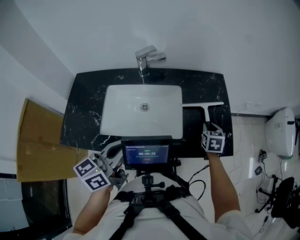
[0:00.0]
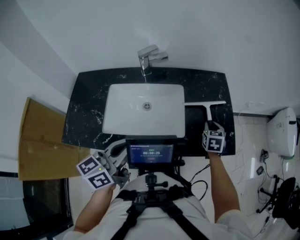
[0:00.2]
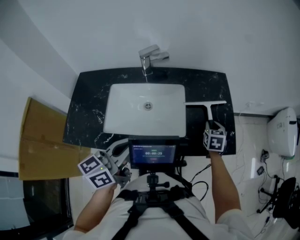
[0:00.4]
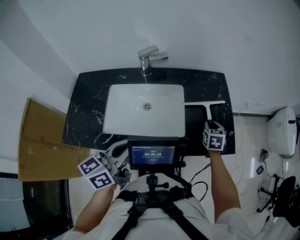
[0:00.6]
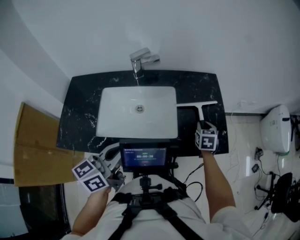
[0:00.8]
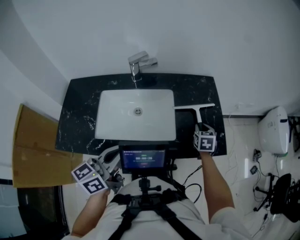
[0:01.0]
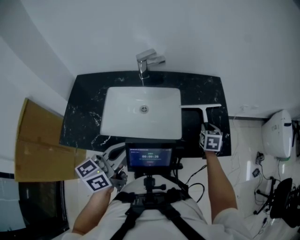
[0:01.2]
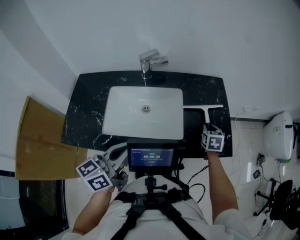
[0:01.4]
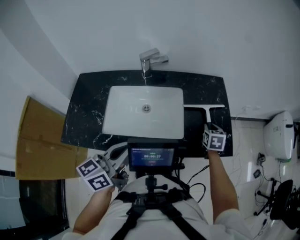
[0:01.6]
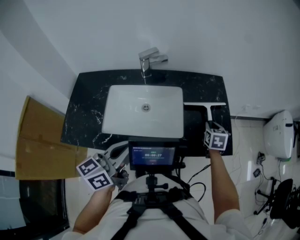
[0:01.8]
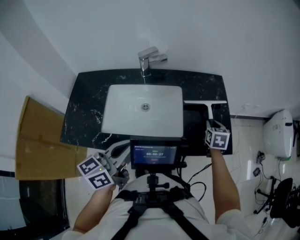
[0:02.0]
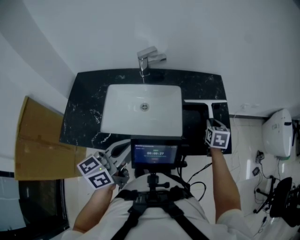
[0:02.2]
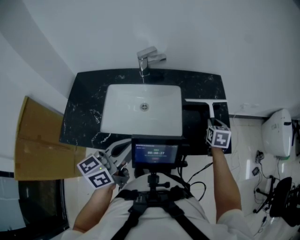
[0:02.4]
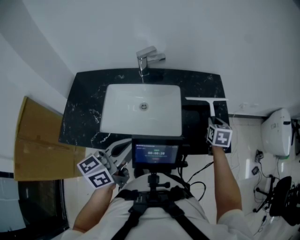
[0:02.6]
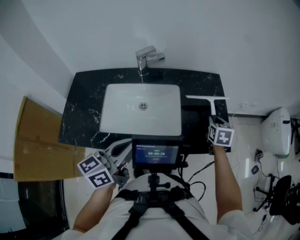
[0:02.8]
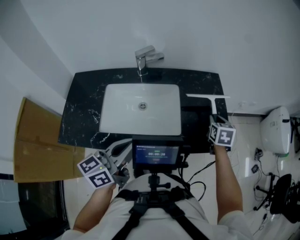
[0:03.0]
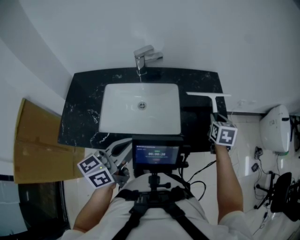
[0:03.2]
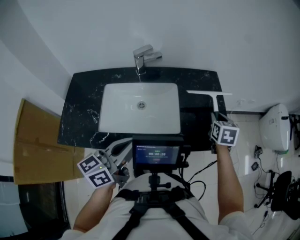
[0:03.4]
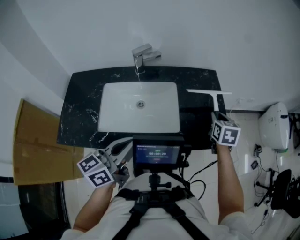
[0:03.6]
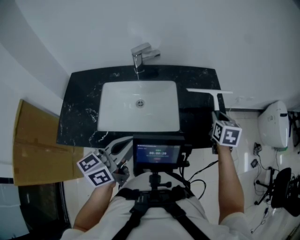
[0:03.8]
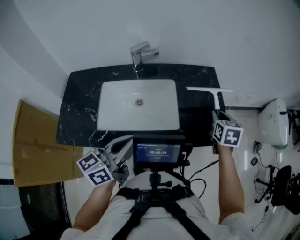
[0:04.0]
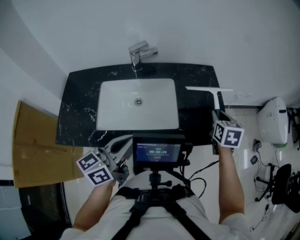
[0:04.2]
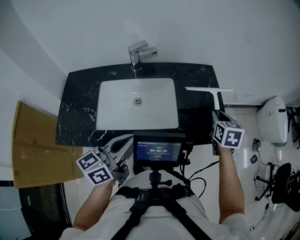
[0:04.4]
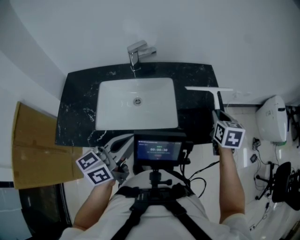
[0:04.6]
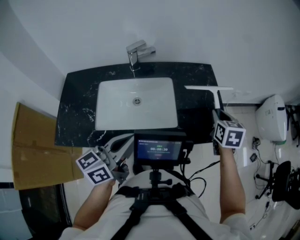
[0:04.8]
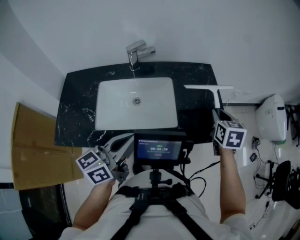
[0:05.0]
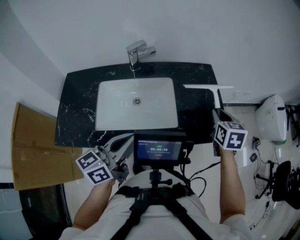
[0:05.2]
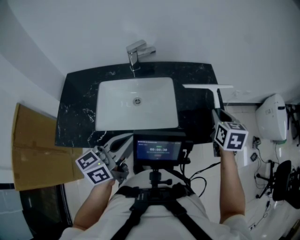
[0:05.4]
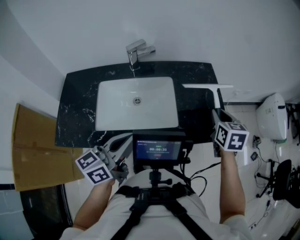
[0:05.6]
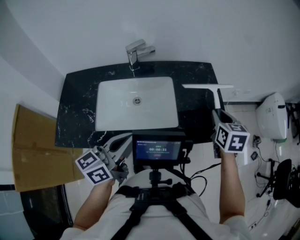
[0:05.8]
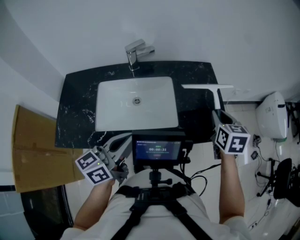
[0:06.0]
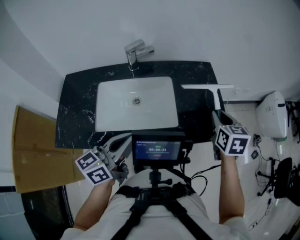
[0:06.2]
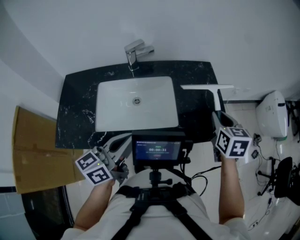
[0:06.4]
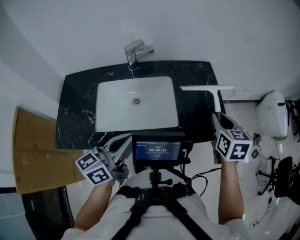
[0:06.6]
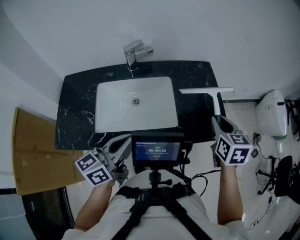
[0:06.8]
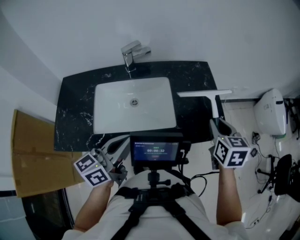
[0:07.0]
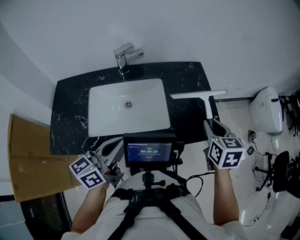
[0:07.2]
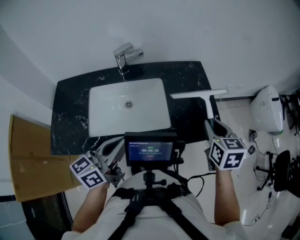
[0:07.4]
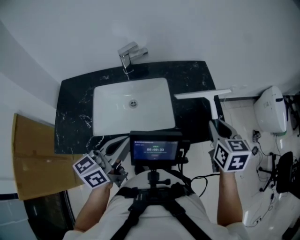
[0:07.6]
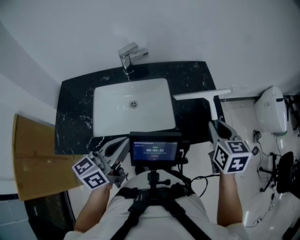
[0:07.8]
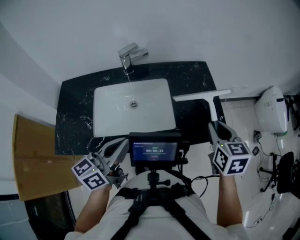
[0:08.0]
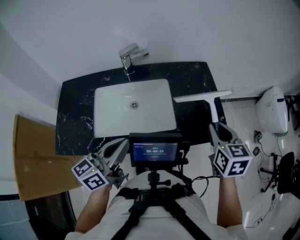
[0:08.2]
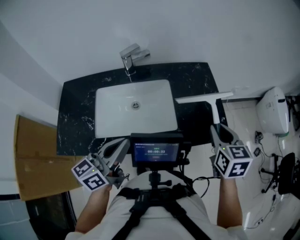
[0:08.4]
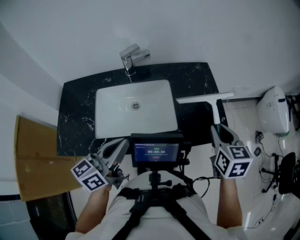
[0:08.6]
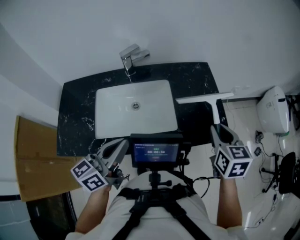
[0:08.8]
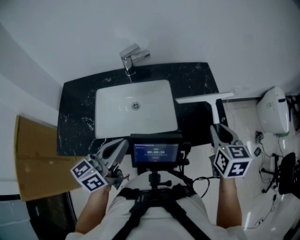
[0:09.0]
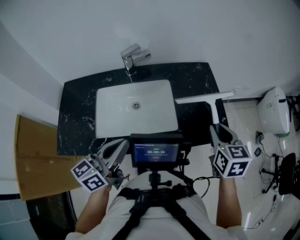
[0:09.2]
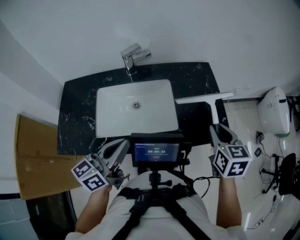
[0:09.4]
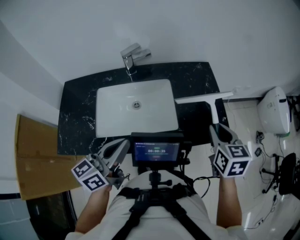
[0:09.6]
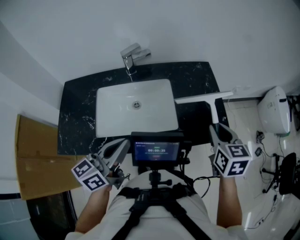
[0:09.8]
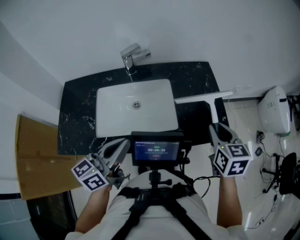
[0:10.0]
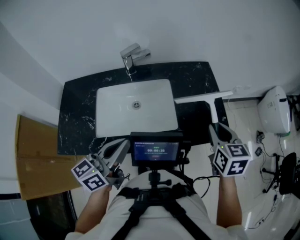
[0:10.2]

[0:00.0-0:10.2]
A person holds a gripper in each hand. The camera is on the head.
0.0 to 1.4 s: The grippers stay close to where they were, moving slightly.
1.4 to 3.0 s: The right gripper goes some 5 cm upward.
3.0 to 4.4 s: The right gripper shifts by approximately 5 cm.
4.4 to 5.8 s: There are only small adjustments of the grippers.
5.8 to 7.2 s: The right gripper is displaced backward by some 5 cm.
7.2 to 8.8 s: There are only small adjustments of the grippers.
8.8 to 10.2 s: The two grippers keep their place.

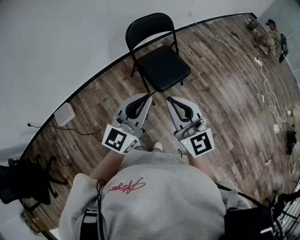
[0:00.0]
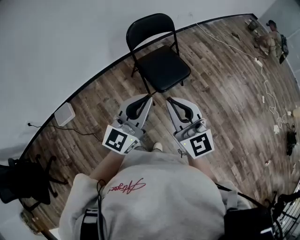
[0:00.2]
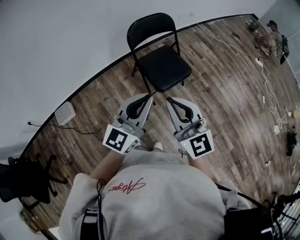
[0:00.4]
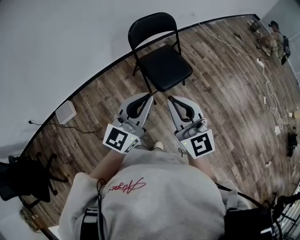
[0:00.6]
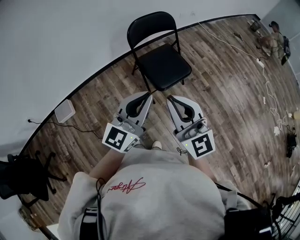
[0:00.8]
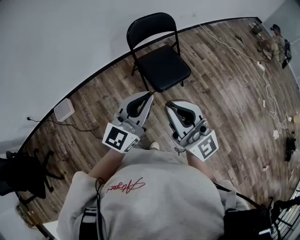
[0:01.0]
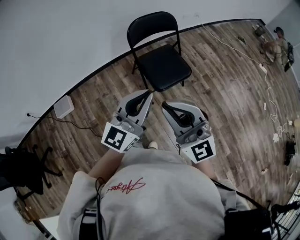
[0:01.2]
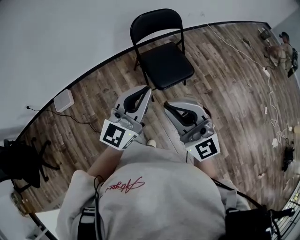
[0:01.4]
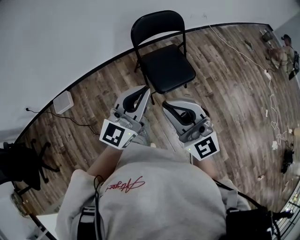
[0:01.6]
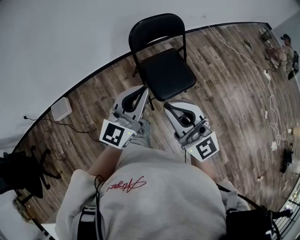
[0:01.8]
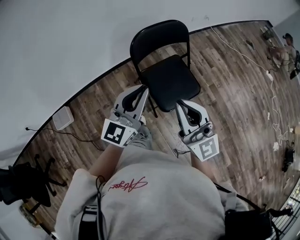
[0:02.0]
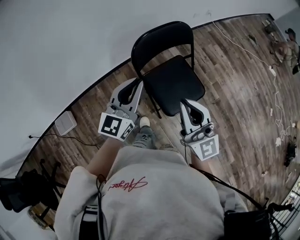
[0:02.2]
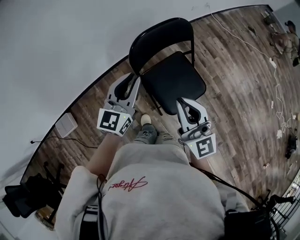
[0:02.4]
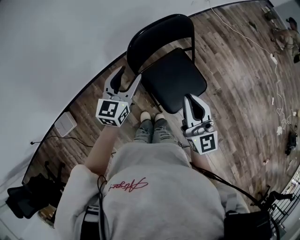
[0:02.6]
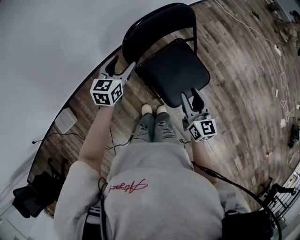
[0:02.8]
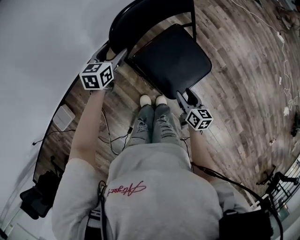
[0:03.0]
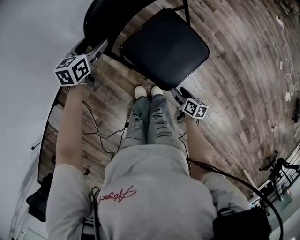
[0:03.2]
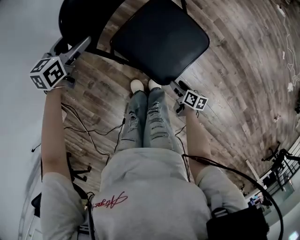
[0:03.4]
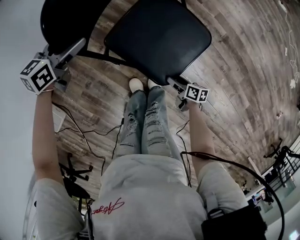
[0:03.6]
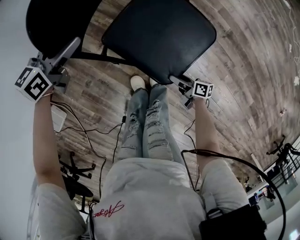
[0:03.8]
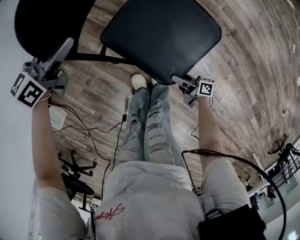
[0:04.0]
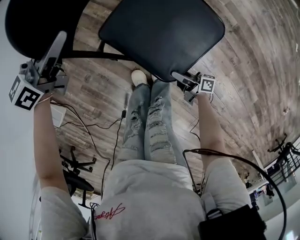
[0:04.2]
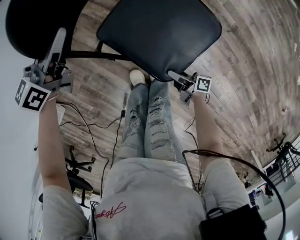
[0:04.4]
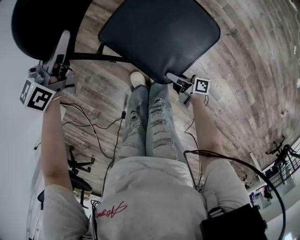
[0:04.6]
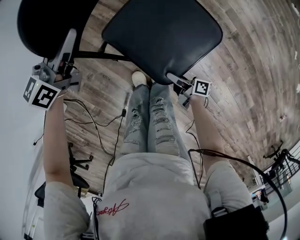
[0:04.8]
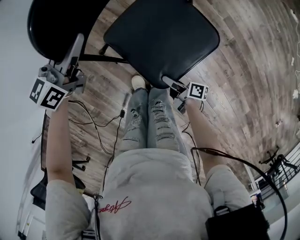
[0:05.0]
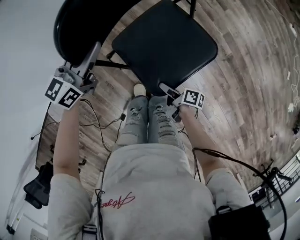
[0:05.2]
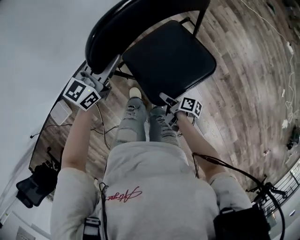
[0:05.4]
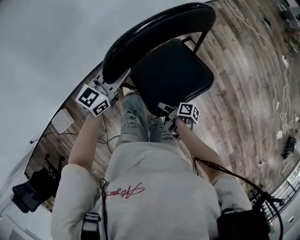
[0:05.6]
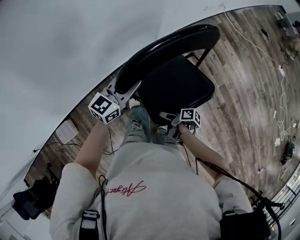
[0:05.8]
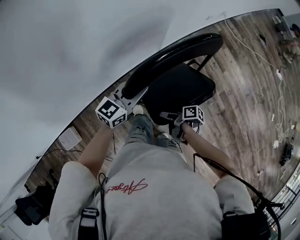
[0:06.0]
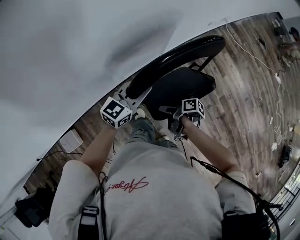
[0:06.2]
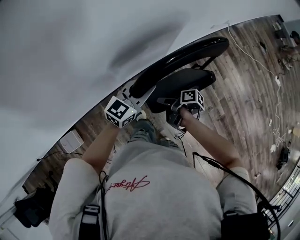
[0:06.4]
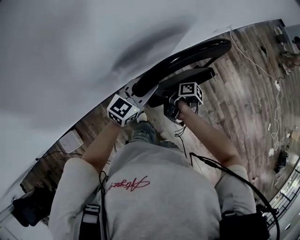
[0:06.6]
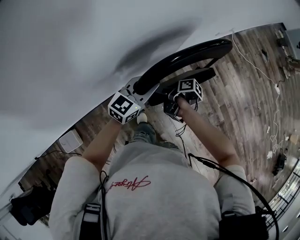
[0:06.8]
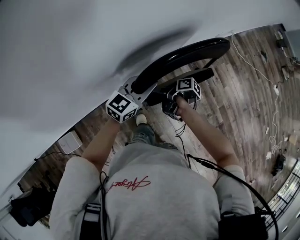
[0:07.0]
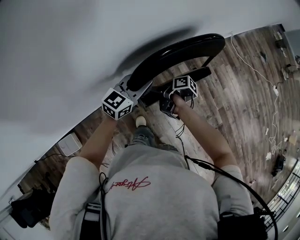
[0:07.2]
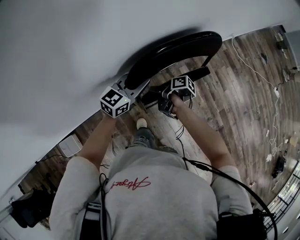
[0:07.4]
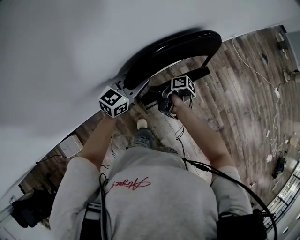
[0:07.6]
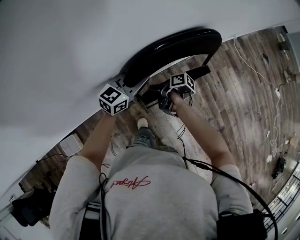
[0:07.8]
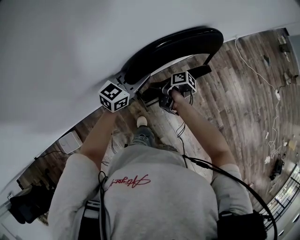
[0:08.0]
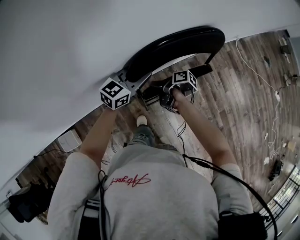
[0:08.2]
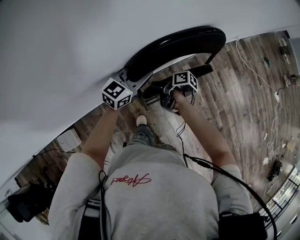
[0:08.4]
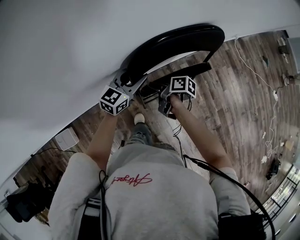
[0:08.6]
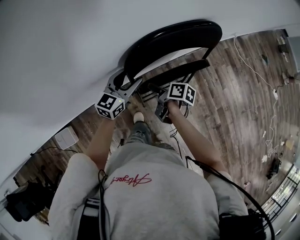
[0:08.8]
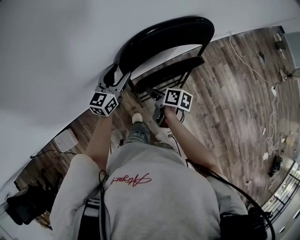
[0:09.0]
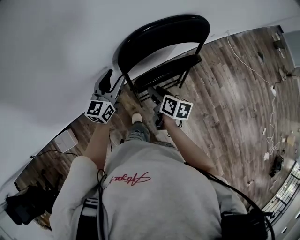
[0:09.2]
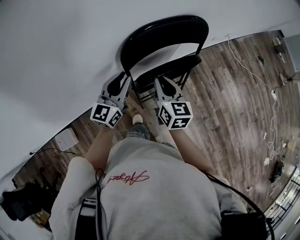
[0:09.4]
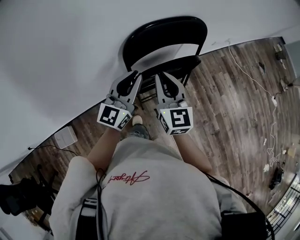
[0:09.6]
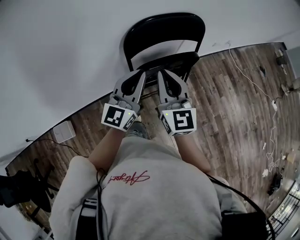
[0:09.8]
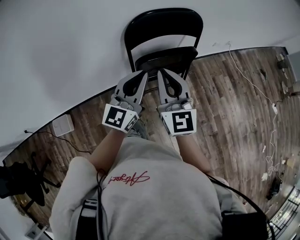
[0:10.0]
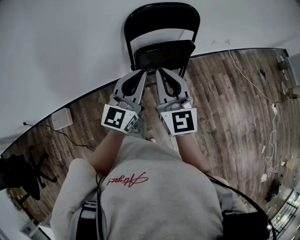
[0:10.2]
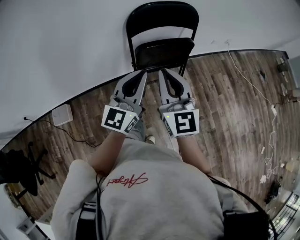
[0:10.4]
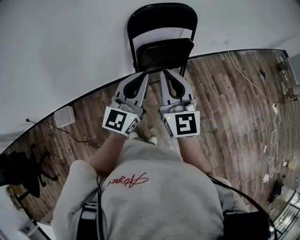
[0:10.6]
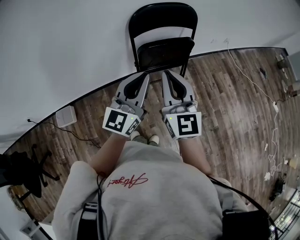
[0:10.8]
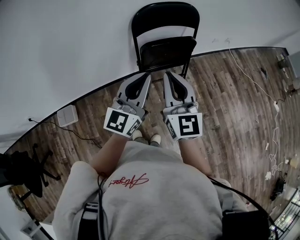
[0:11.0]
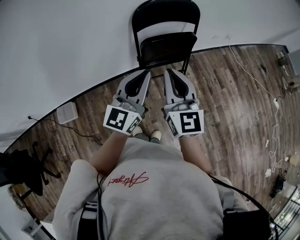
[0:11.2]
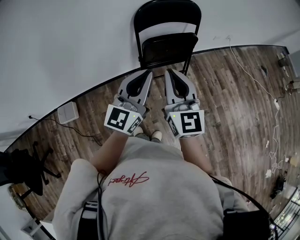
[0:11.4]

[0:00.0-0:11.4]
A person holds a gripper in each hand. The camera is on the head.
0.0 to 1.4 s: The right gripper changes its angle by some 30 degrees.
1.4 to 2.8 s: Both grippers travel together forward and downward, some 50 cm. The left gripper tips its fingers downward by approximately 40 degrees, and opens up; the right gripper changes its angle by about 70 degrees, and opens.
2.8 to 4.2 s: The left gripper travels downward and forward by roughly 10 cm, and turns by about 30 degrees, while the right gripper goes about 40 cm downward, and rotates around the line of its fingers by approximately 70 degrees, clockwise from behind.
4.2 to 5.6 s: The right gripper shifts about 20 cm upward, forward and to the left, and tips its fingers downward by about 30 degrees. The left gripper heads upward, covering roughly 10 cm.
5.6 to 7.2 s: The right gripper goes some 40 cm forward and to the left, while the left gripper travels forward by some 20 cm.
7.2 to 8.6 s: The left gripper changes place by roughly 5 cm.
8.6 to 10.0 s: The right gripper is displaced upward and backward by some 35 cm, rotates around the line of its fingers by about 90 degrees, counterclockwise from behind, and closes up. Meanwhile the left gripper shifts approximately 30 cm backward and upward, swivels approximately 30 degrees, and closes.
10.0 to 11.4 s: The two grippers go some 15 cm backward.

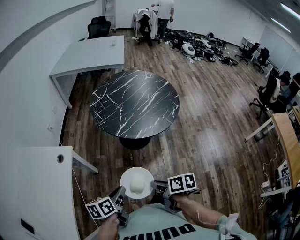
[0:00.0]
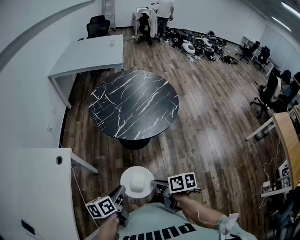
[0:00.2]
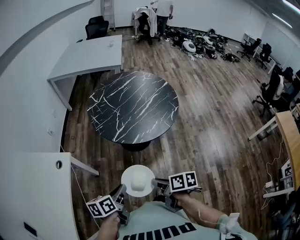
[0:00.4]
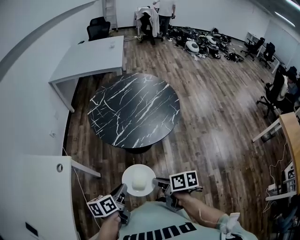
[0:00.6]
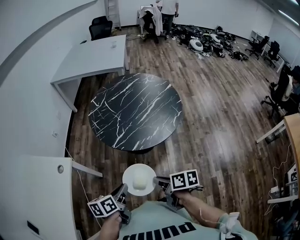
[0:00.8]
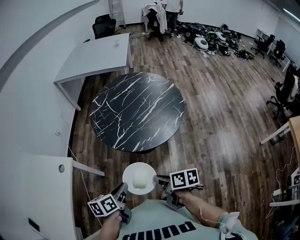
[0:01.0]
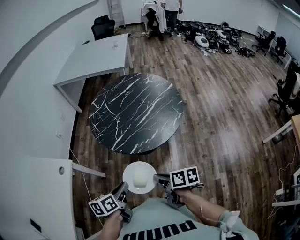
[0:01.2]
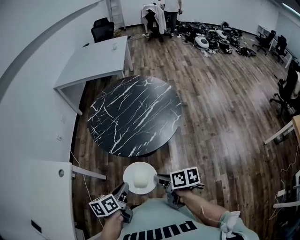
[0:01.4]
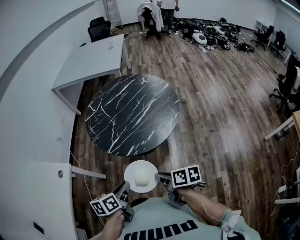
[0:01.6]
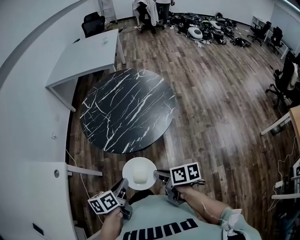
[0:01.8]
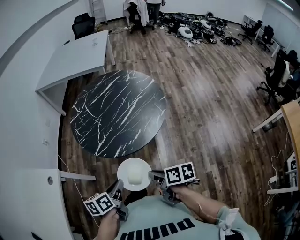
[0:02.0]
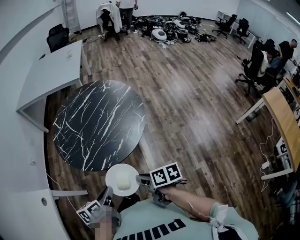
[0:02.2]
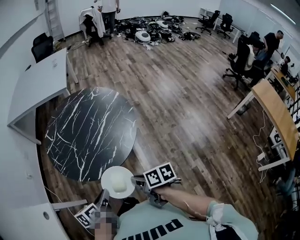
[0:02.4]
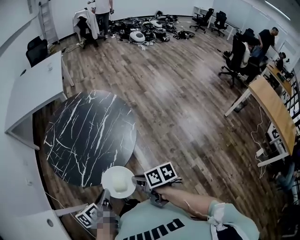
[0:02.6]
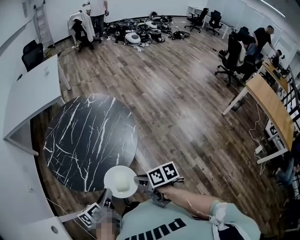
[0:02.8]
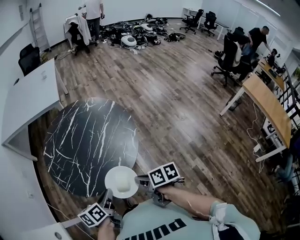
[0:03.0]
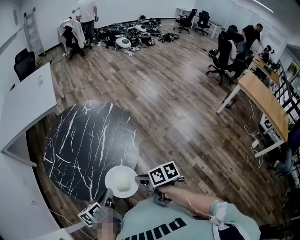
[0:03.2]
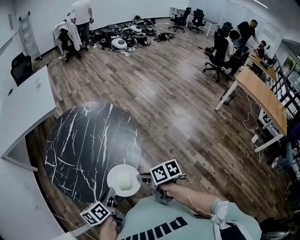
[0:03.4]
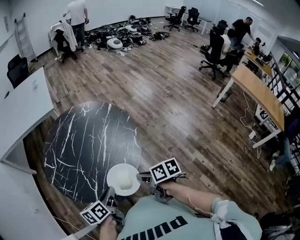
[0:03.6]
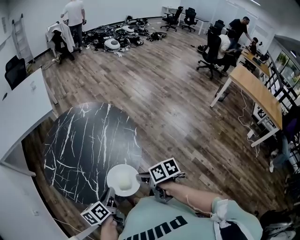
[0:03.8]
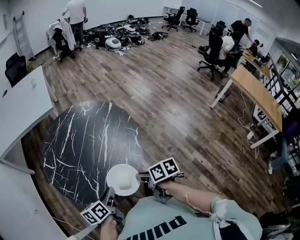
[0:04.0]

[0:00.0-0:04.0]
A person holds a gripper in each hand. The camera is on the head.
0.0 to 1.4 s: Both grippers travel together to the right and forward, some 20 cm.
1.4 to 2.6 s: The grippers both shift forward and to the right by approximately 10 cm.
2.6 to 4.0 s: The grippers both shift forward and to the left by roughly 10 cm.
